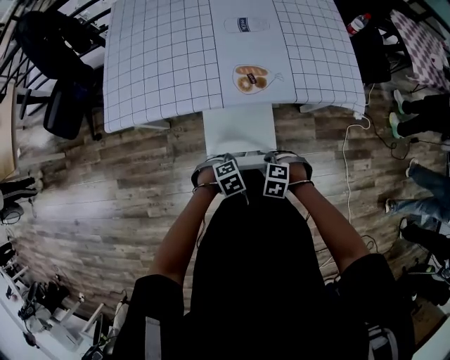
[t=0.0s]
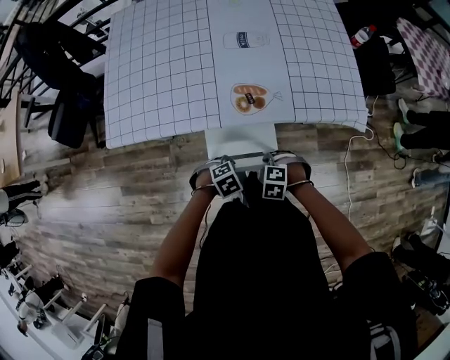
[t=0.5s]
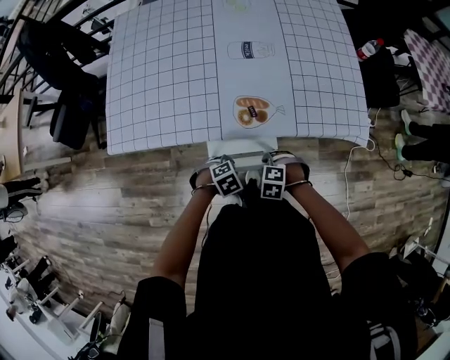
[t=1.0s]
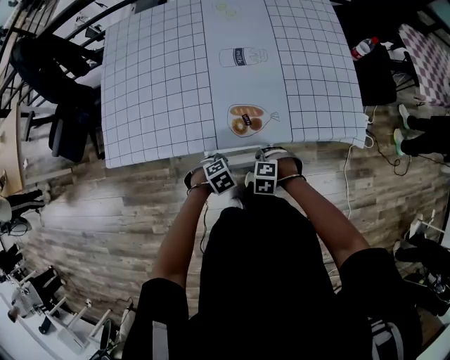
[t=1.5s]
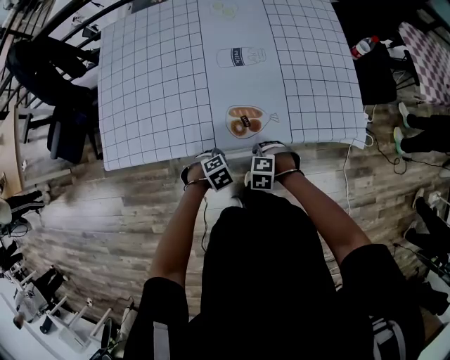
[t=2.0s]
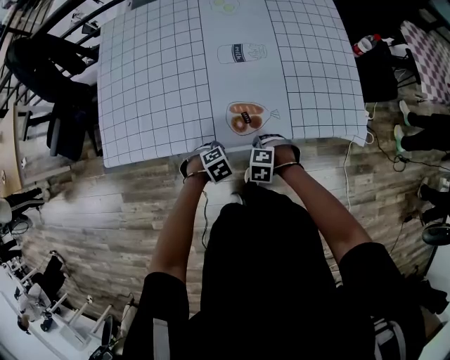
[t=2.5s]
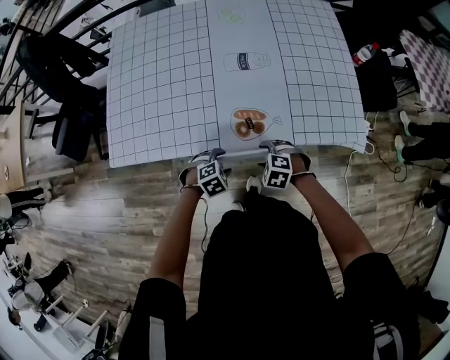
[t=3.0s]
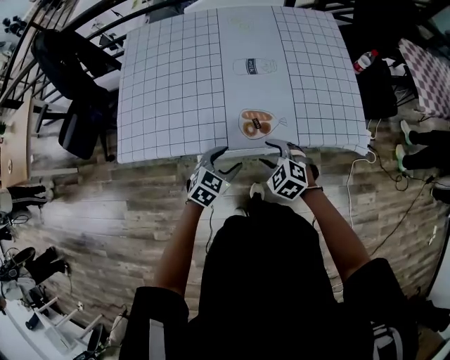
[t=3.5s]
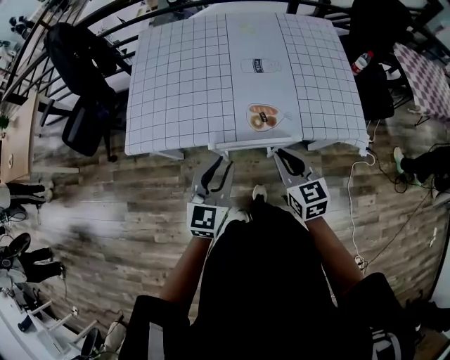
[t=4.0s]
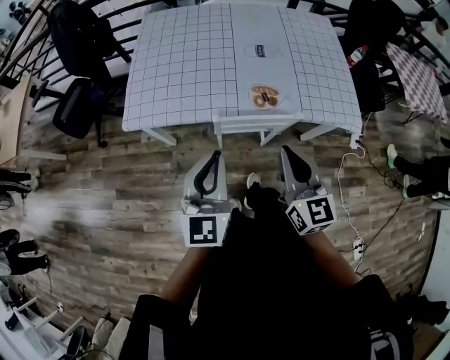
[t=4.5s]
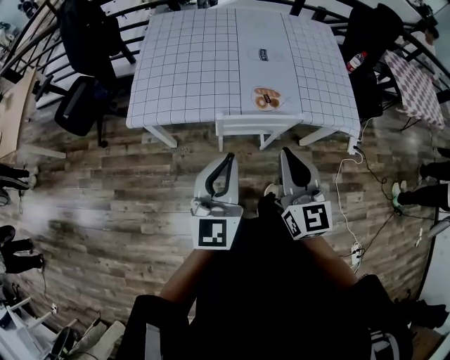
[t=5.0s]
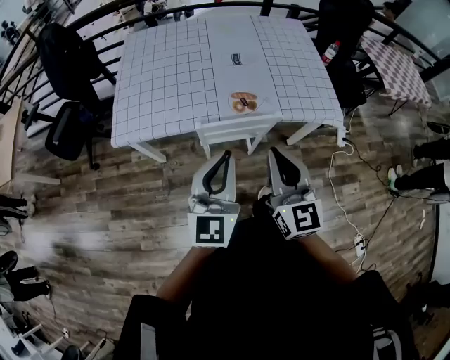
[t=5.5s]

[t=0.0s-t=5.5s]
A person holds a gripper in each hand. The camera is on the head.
t=0.0s to t=2.0s: The right gripper ends up roughly 20 cm from where it was. Meanwhile the left gripper changes place by approximately 20 cm.
t=2.0s to t=3.5s: Both grippers move upward, roughly 15 cm. The right gripper rotates about 30 degrees, and opens its fingers, while the left gripper points its fingers some 40 degrees further upward, and opens.
t=3.5s to t=5.5s: The grippers both shift upward and backward by roughly 35 cm. The left gripper tilts its fingers about 40 degrees upward, and closes up; the right gripper tilts its fingers roughly 50 degrees upward, and closes its fingers.

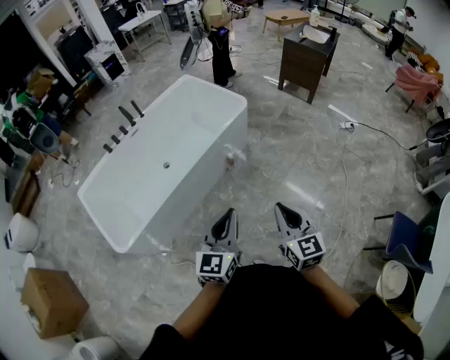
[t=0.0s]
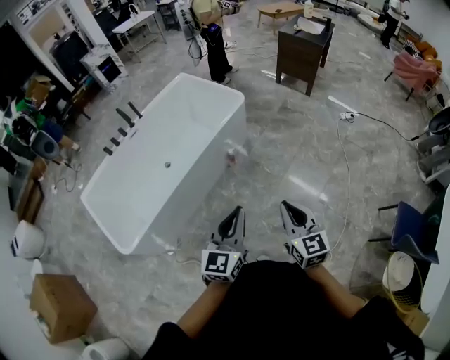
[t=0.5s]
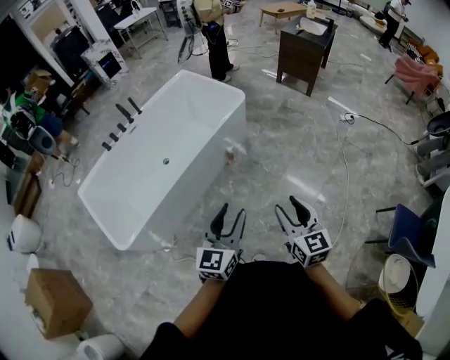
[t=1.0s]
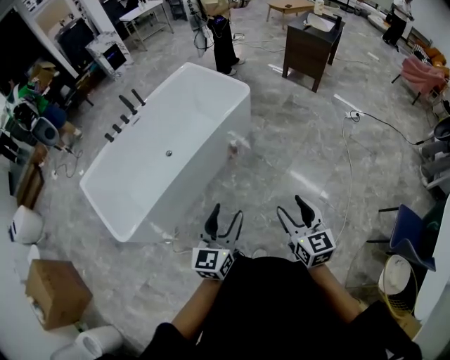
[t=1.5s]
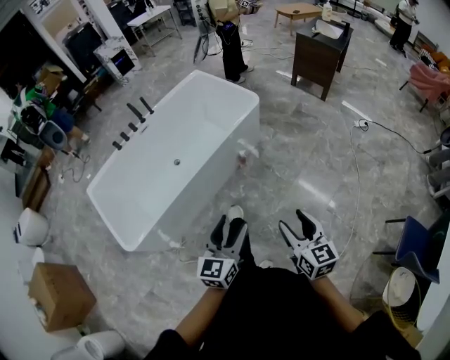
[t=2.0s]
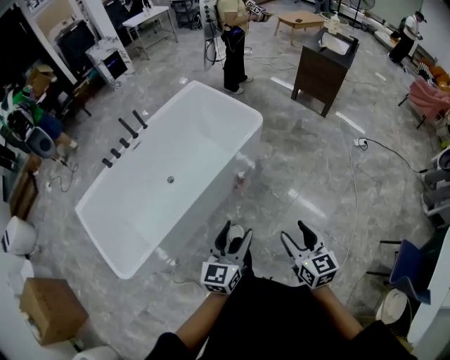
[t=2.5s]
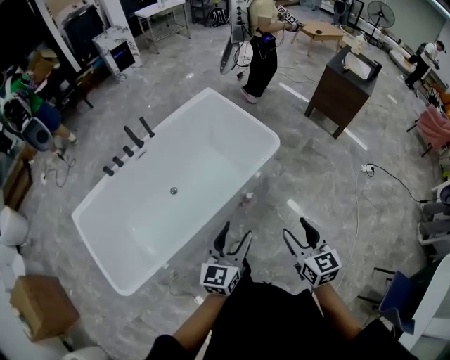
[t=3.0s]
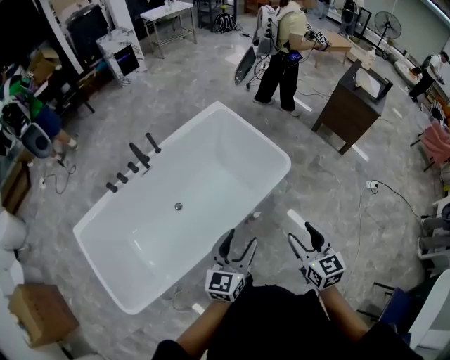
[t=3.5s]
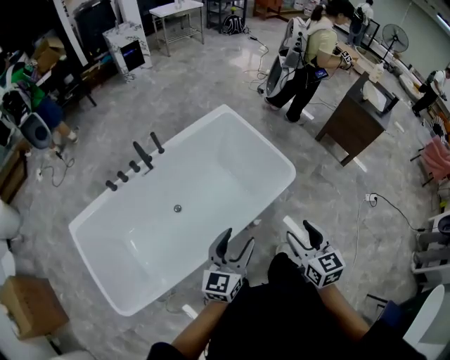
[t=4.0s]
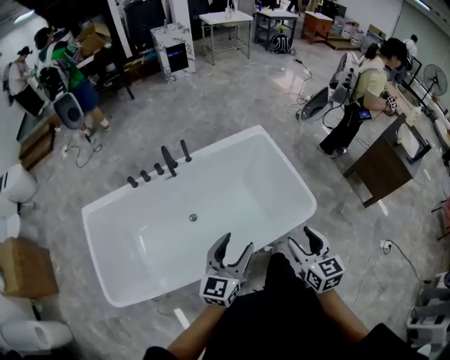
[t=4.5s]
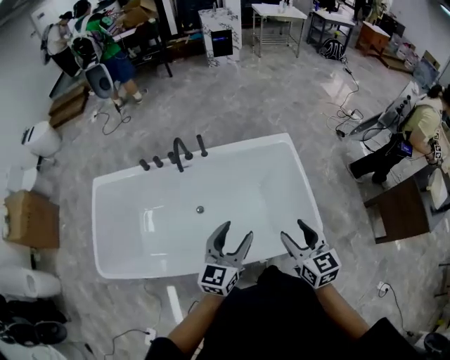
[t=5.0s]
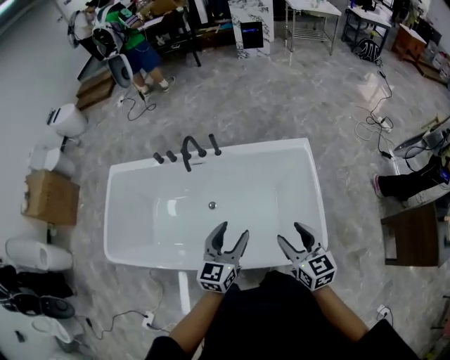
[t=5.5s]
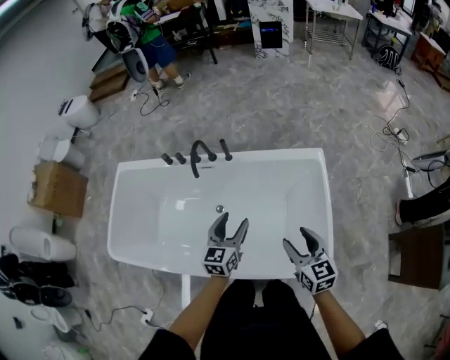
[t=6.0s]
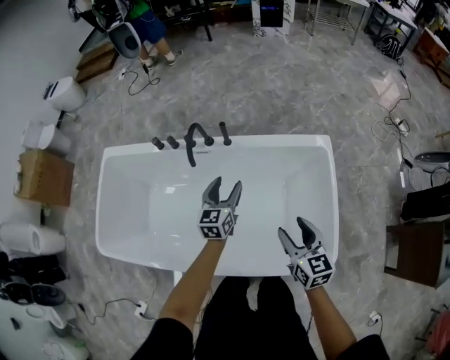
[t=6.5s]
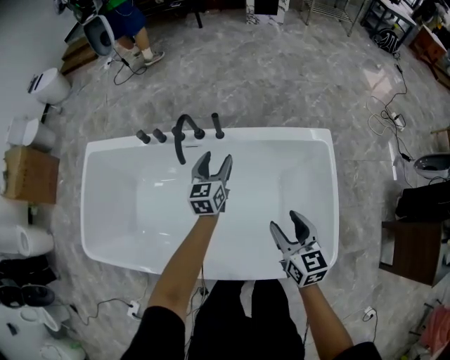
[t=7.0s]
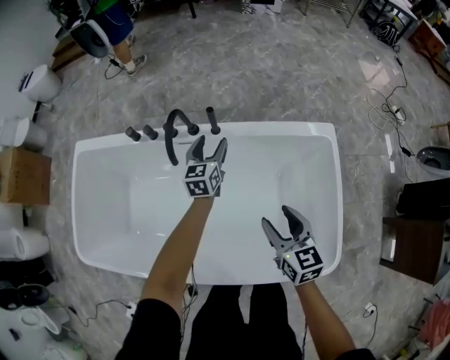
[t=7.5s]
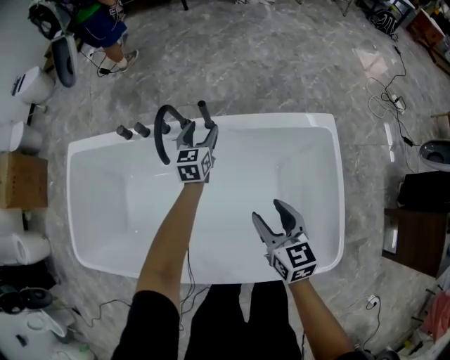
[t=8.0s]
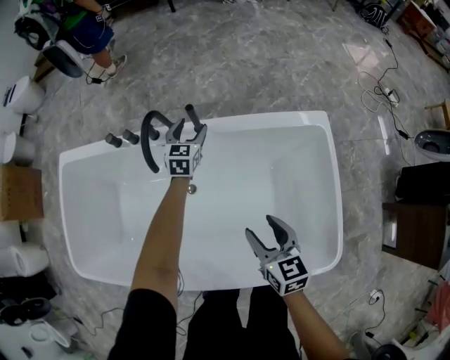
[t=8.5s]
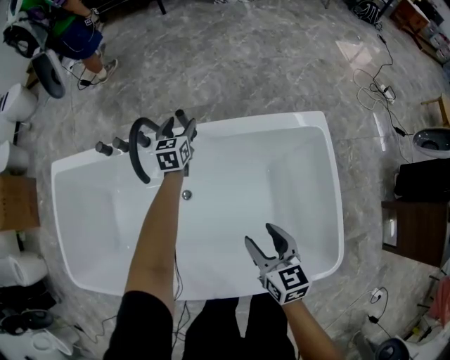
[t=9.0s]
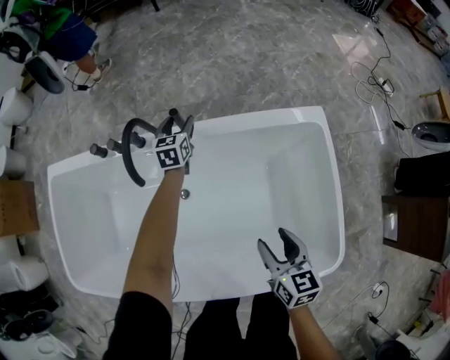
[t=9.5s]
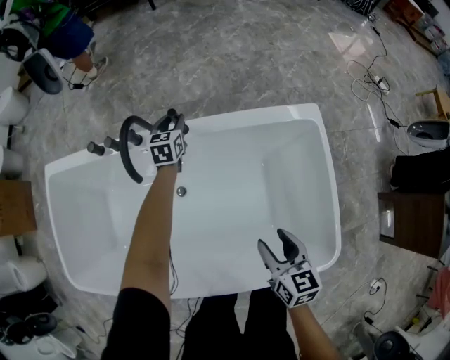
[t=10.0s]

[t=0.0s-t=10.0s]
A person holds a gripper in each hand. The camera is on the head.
t=0.0s to t=2.0s: The left gripper opens its fingers; the right gripper opens its fingers.
t=2.0s to t=4.0s: The two grippers travel together, forward, some 50 cm.
t=4.0s to t=6.0s: The left gripper changes place by approximately 35 cm, and swivels about 50 degrees; the right gripper shifts by roughly 40 cm, and turns by roughly 40 degrees.
t=6.0s to t=8.0s: The left gripper is displaced forward and downward by about 40 cm, while the right gripper moves downward, forward and to the left, roughly 25 cm.
t=8.0s to t=10.0s: The right gripper shifts approximately 10 cm backward and downward. The left gripper moves forward and downward, some 10 cm, and closes up.

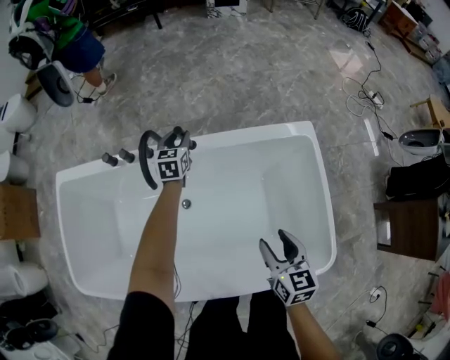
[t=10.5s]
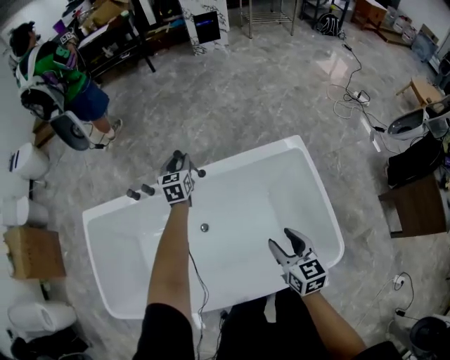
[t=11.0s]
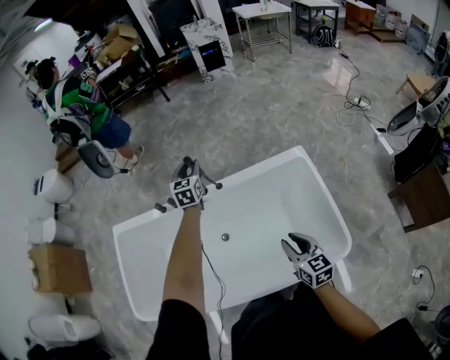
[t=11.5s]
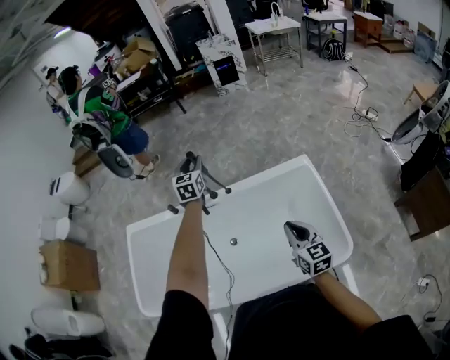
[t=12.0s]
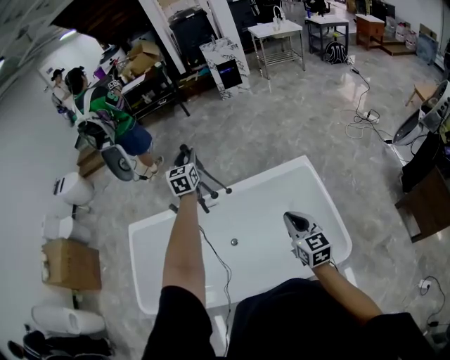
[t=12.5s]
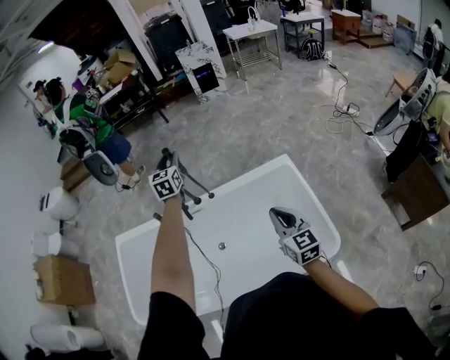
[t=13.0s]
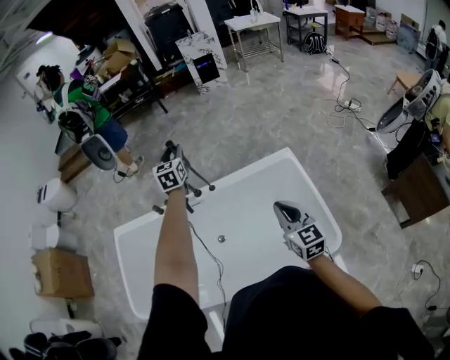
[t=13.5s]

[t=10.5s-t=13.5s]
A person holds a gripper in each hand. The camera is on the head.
t=10.5s to t=12.0s: The left gripper moves upward, some 35 cm, while the right gripper goes some 20 cm upward, and closes up.
t=12.0s to t=13.5s: The right gripper shifts by some 5 cm.

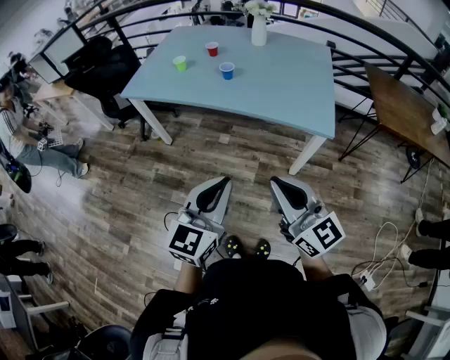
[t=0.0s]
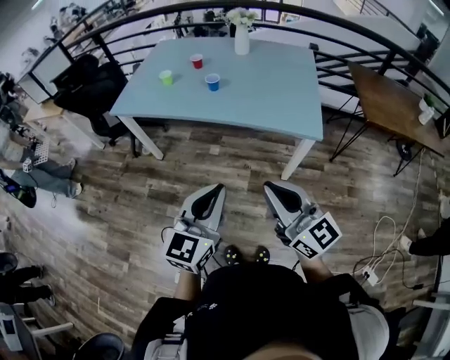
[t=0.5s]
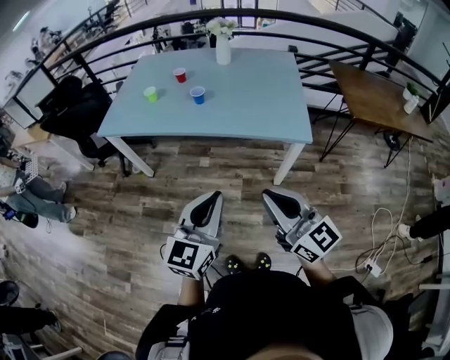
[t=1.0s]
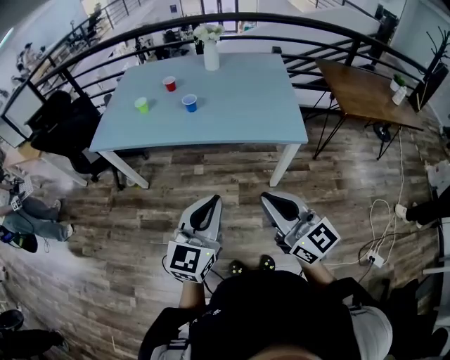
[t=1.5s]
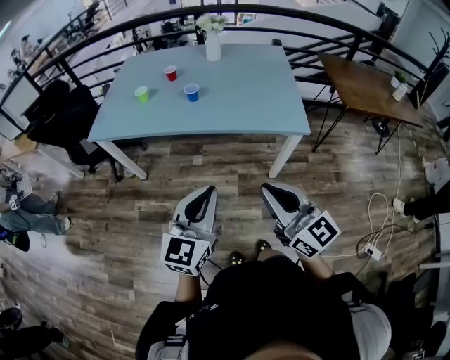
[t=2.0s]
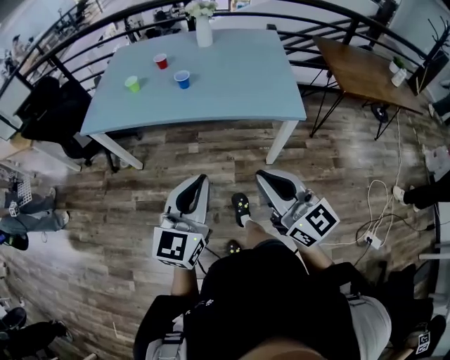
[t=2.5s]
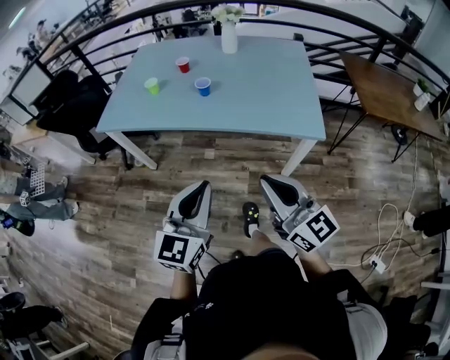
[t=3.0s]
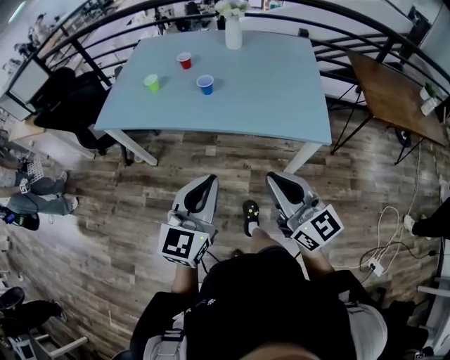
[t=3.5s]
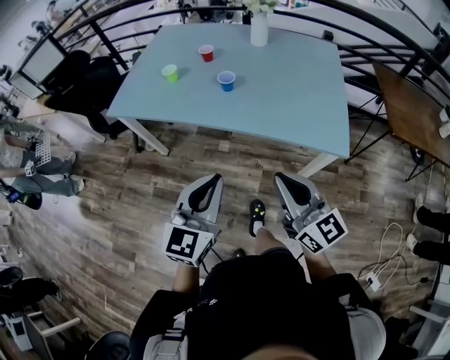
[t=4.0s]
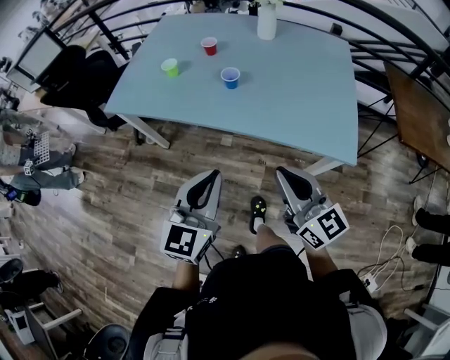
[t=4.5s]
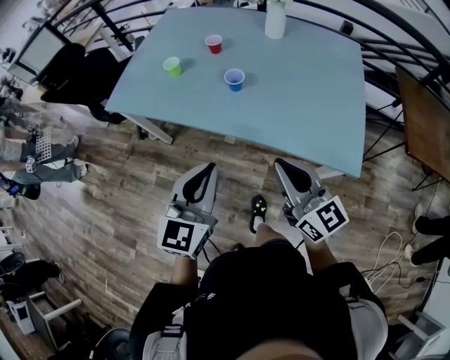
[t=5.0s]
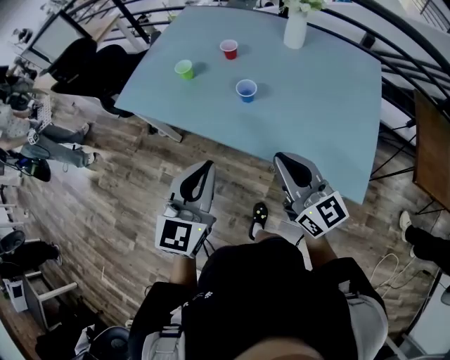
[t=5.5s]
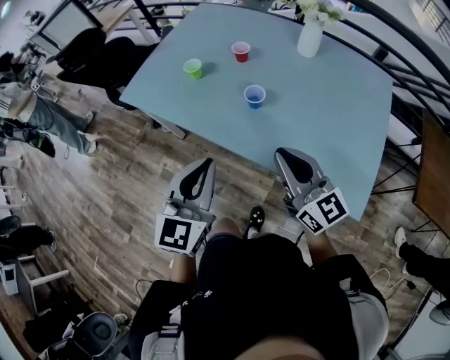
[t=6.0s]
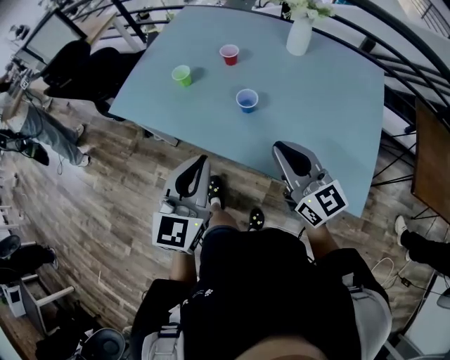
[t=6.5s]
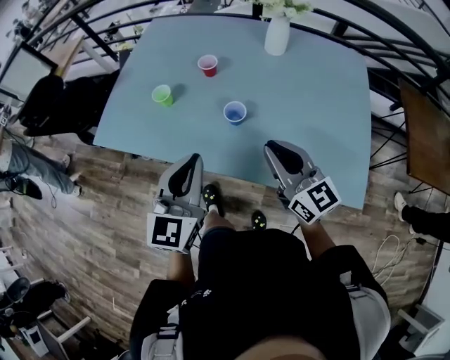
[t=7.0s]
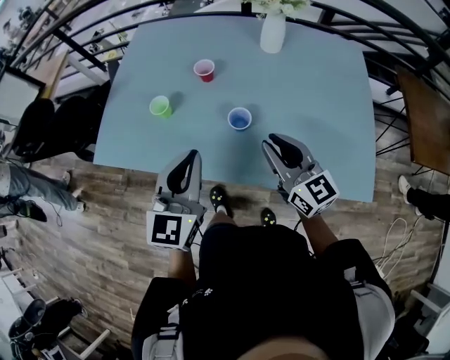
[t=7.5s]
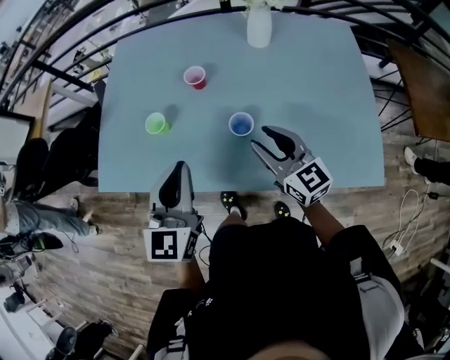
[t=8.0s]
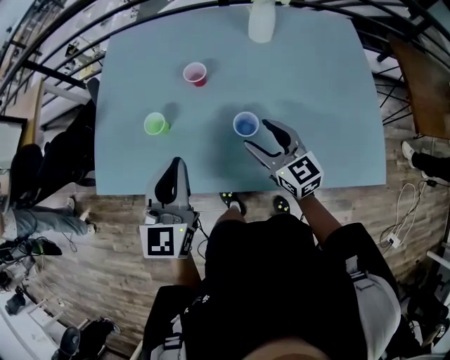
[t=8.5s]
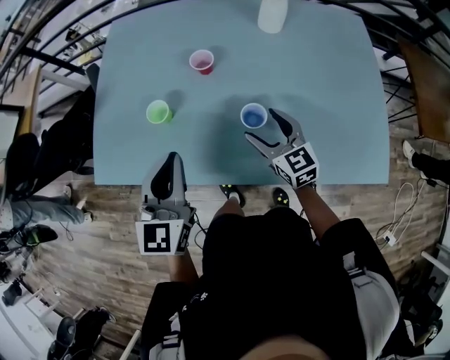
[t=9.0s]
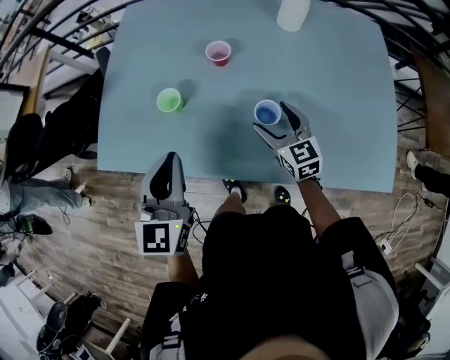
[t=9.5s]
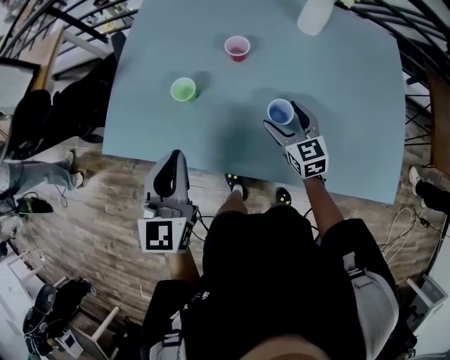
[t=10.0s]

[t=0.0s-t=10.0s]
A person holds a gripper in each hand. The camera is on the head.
t=0.0s to t=2.0s: The right gripper ends up about 5 cm from where it was. Meanwhile the left gripper is displaced to the left and forward by approximately 10 cm.
t=2.0s to t=4.0s: Both grippers move forward, some 15 cm.
t=4.0s to t=6.0s: Both grippers move forward, some 25 cm.
t=6.0s to t=8.0s: The grippers both shift forward by approximately 20 cm. The right gripper rotates approximately 20 degrees, and opens.
t=8.0s to t=10.0s: The left gripper is displaced to the left by approximately 10 cm. Meanwhile the right gripper is displaced downward and forward by some 15 cm, and opens its fingers.
